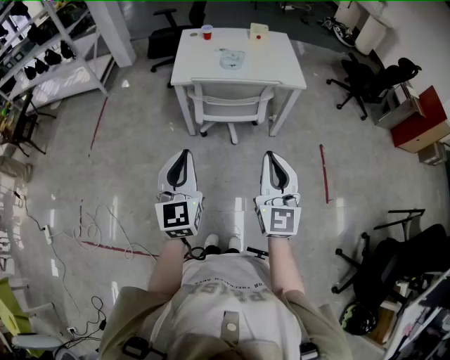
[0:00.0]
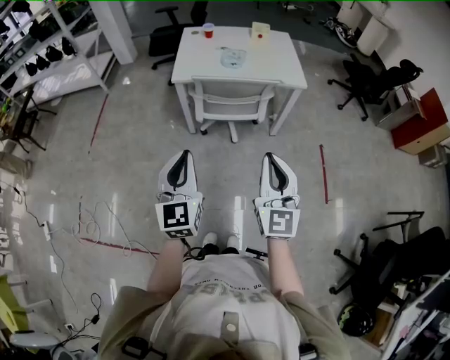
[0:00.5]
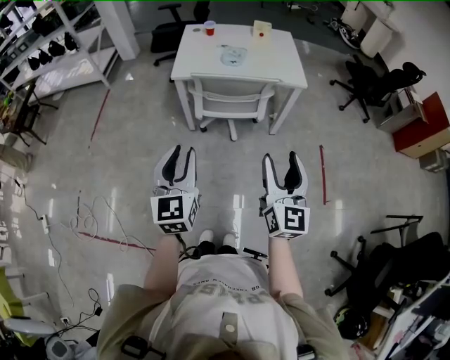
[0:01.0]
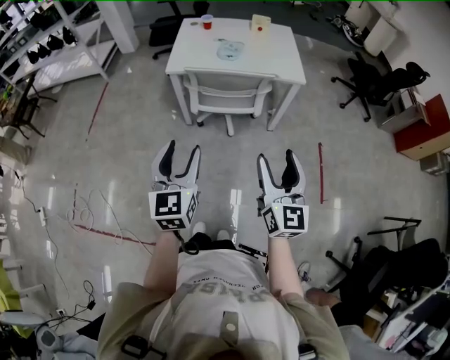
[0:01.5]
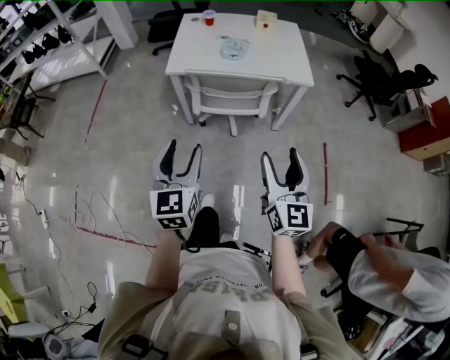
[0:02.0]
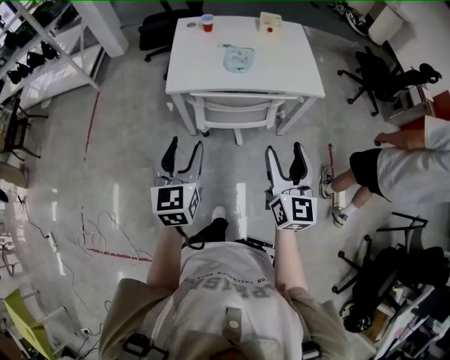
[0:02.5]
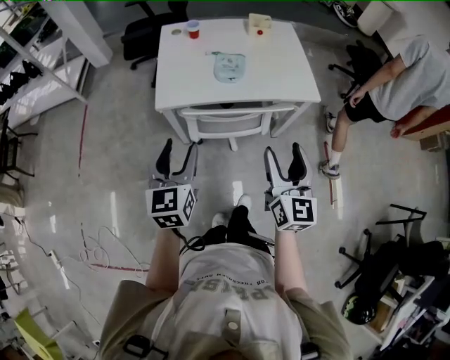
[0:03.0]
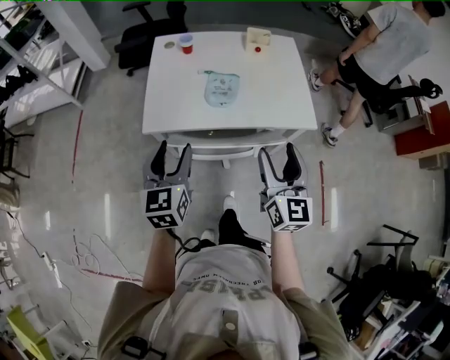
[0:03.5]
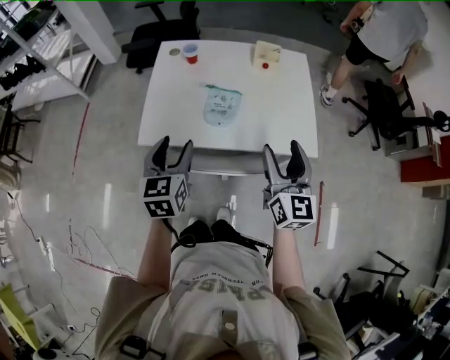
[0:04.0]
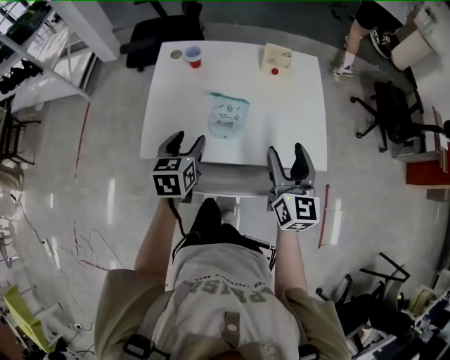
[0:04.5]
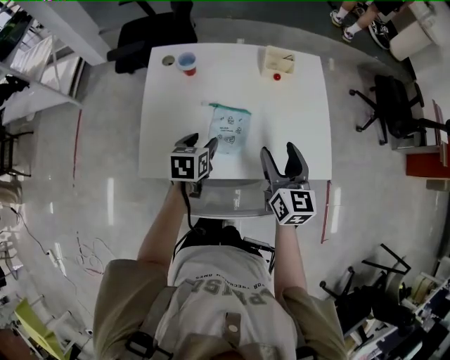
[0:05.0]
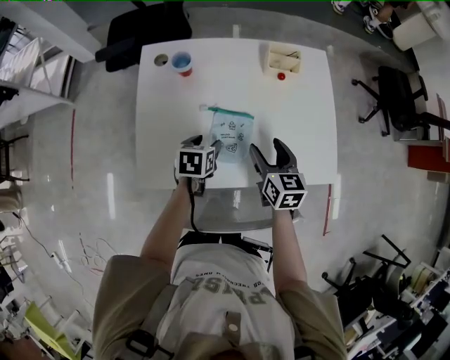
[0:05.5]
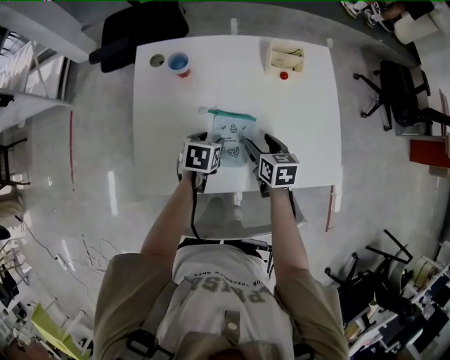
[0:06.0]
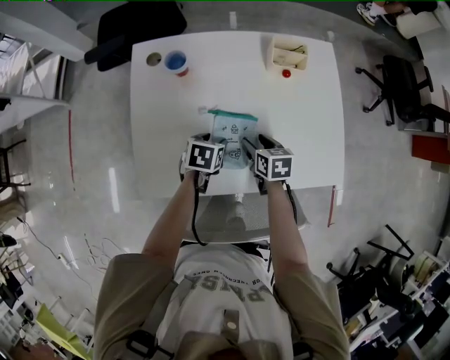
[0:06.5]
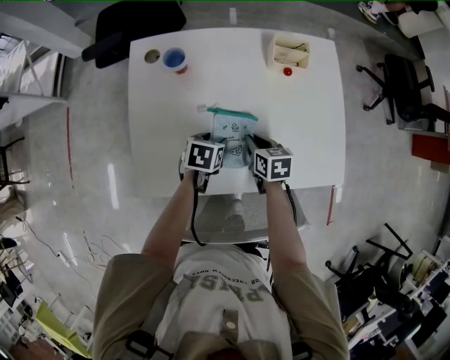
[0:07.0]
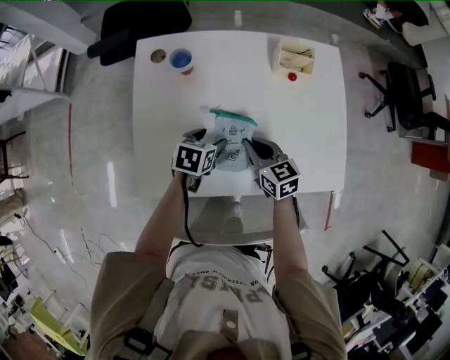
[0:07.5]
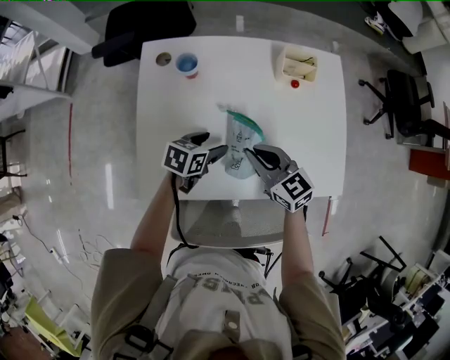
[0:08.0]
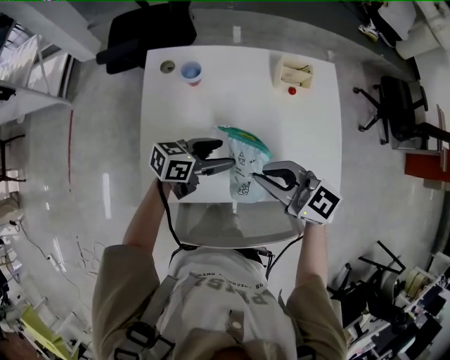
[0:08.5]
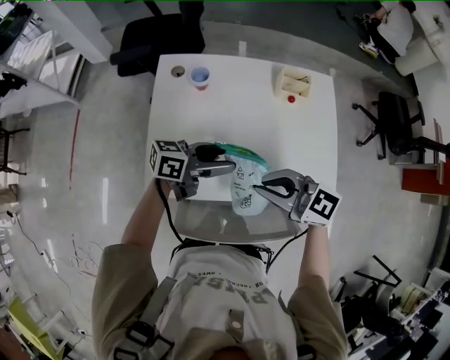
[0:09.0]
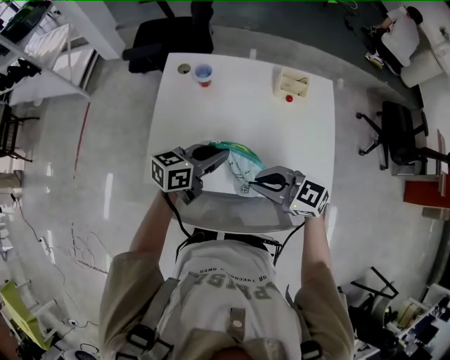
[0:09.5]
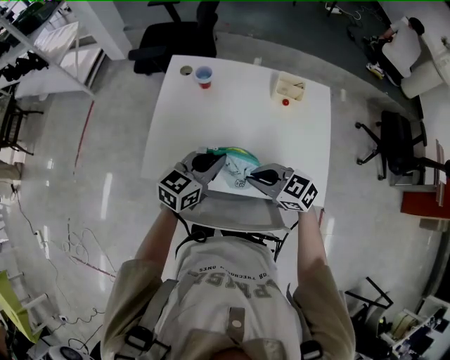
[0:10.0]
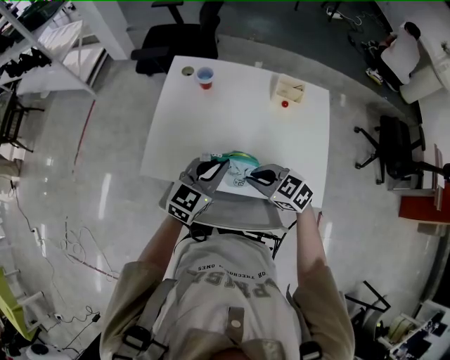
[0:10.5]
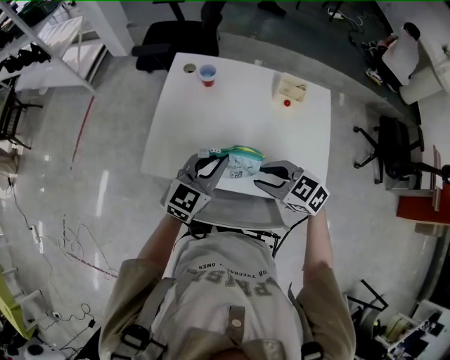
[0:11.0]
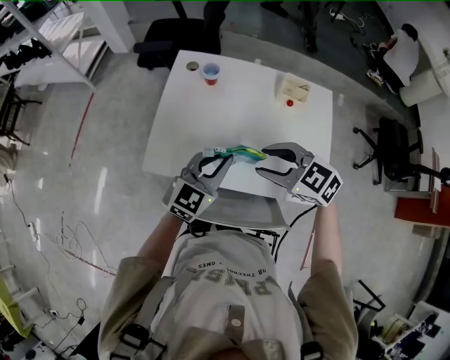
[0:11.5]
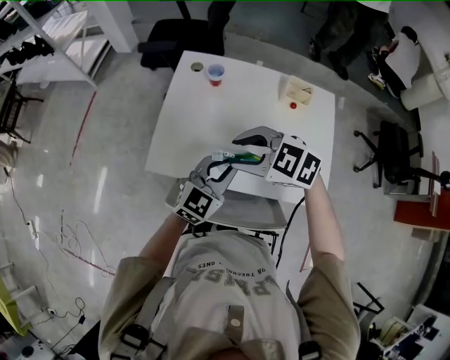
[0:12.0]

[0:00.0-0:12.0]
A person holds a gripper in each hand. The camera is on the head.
0:00.0 to 0:02.0: The right gripper travels to the right, forward and downward by roughly 10 cm, and opens its fingers. The left gripper heads forward, covering some 5 cm, and opens.
0:02.0 to 0:04.0: Both grippers are carried forward, approximately 50 cm.
0:04.0 to 0:06.0: The grippers both shift downward and forward by about 40 cm. The right gripper points its fingers about 40 degrees further downward; the left gripper tips its fingers downward by approximately 30 degrees.
0:06.0 to 0:08.0: The right gripper travels upward and to the left by some 10 cm, changes its angle by roughly 40 degrees, and closes.
0:08.0 to 0:10.0: The right gripper ends up approximately 15 cm from where it was, and rotates some 30 degrees. Meanwhile the left gripper goes about 20 cm upward, changes its angle by roughly 40 degrees, and closes.
0:10.0 to 0:12.0: The right gripper shifts approximately 15 cm upward, to the left and forward, changes its angle by approximately 20 degrees, and opens, while the left gripper swivels some 20 degrees.

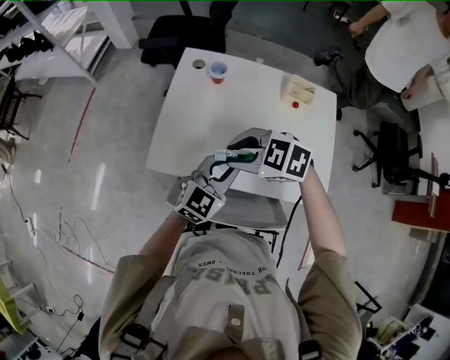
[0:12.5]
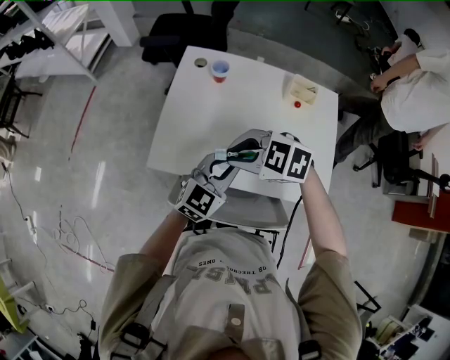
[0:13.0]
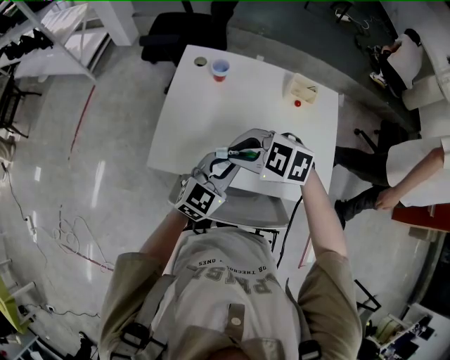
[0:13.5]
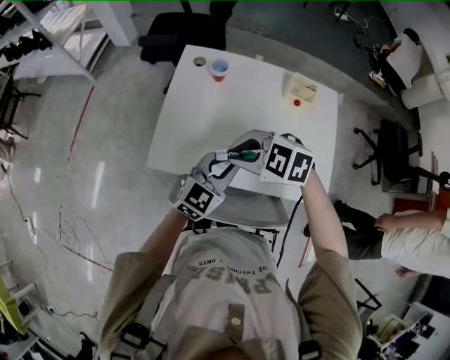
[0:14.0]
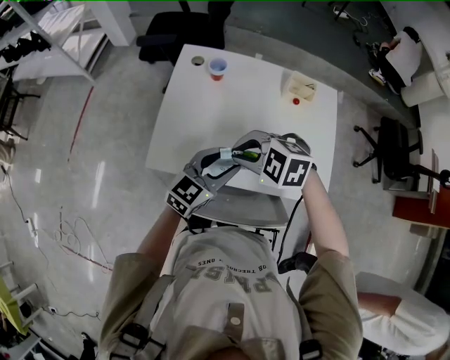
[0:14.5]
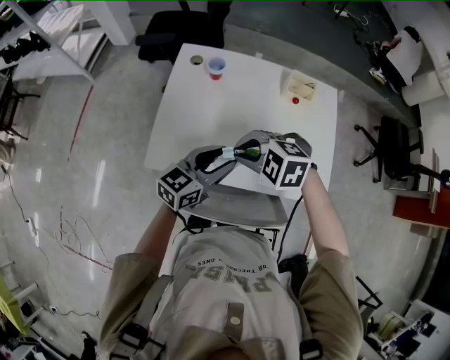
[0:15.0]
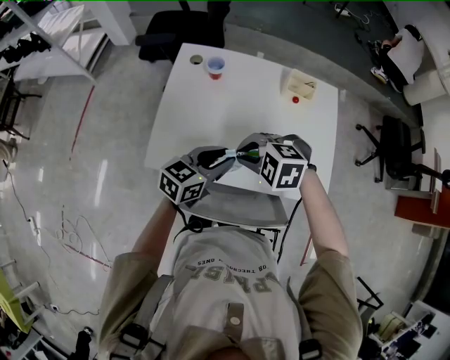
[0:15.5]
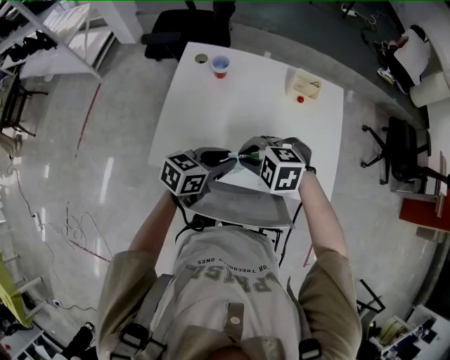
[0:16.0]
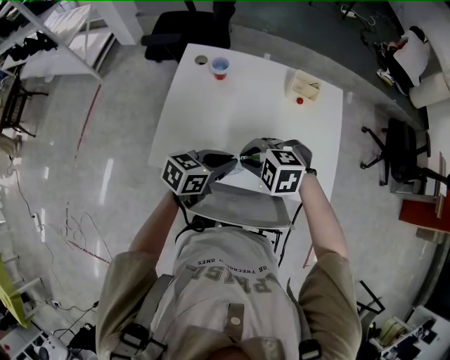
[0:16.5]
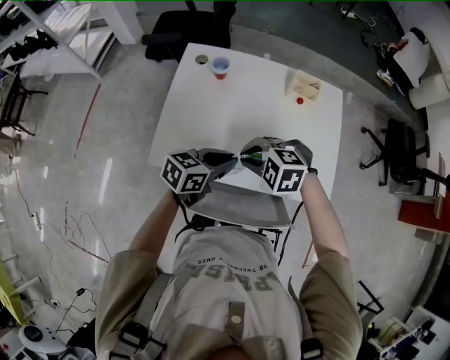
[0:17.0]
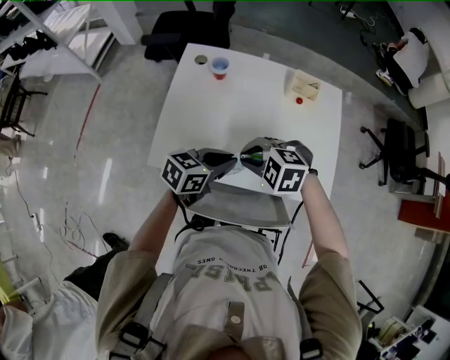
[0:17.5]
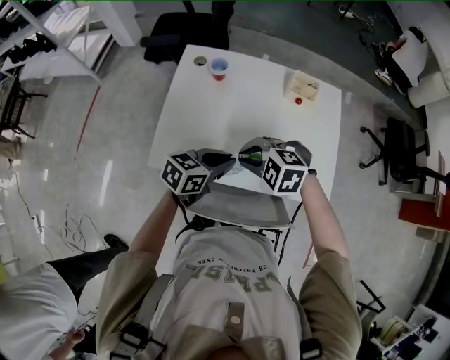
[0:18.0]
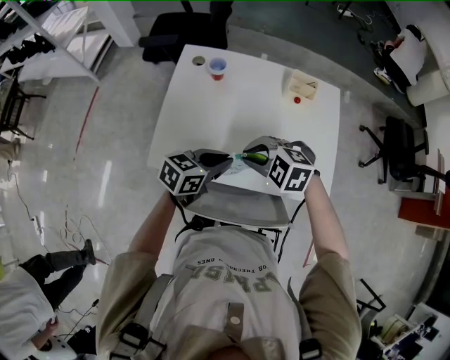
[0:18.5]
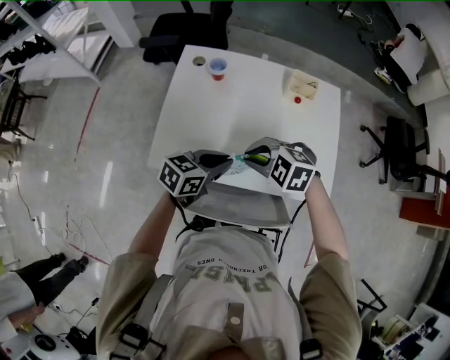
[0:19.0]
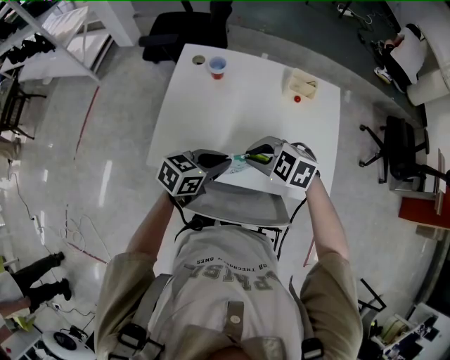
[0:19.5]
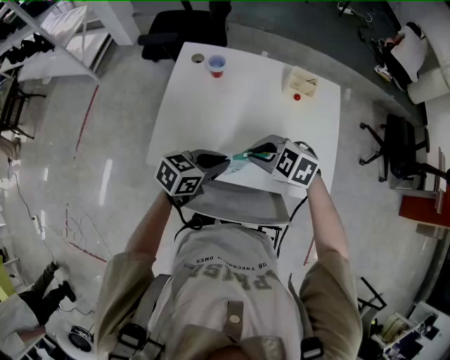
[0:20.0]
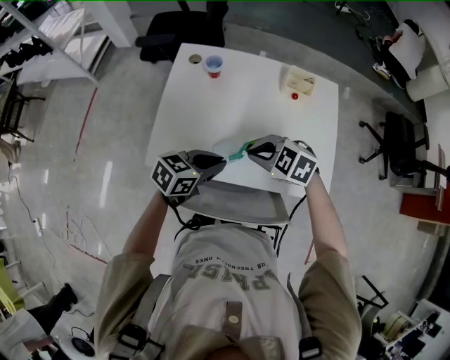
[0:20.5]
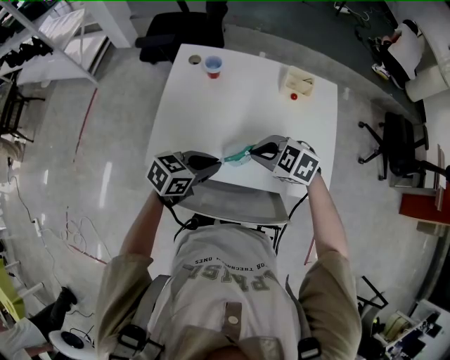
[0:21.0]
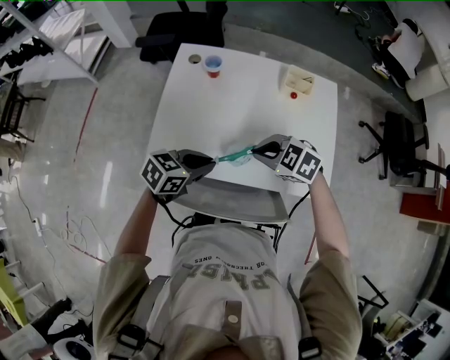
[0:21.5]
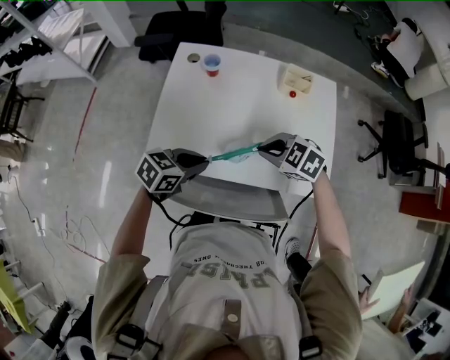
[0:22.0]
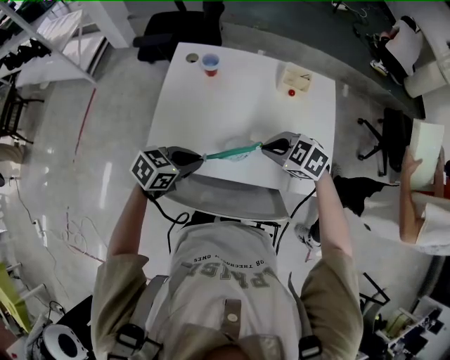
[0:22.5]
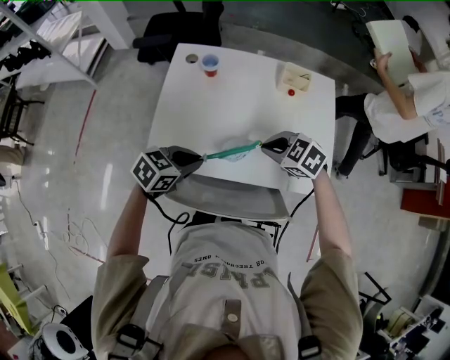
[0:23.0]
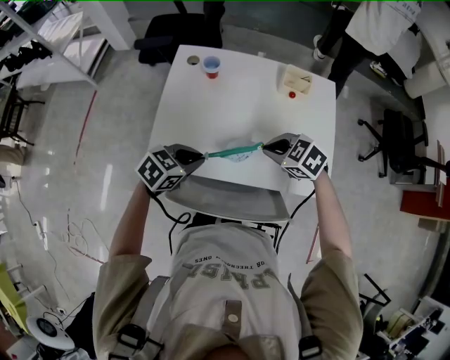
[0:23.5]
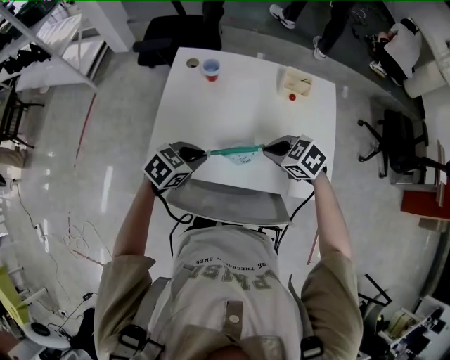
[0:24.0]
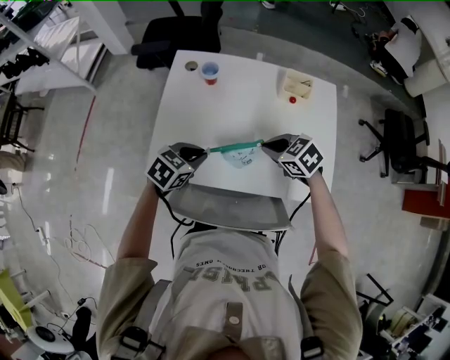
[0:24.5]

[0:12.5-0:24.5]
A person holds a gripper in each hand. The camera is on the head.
0:12.5 to 0:14.5: The left gripper opens.
0:14.5 to 0:16.5: The left gripper swivels about 30 degrees, and closes up, while the right gripper heads downward, covering about 5 cm.
0:16.5 to 0:20.5: The grippers make only small movements.
0:20.5 to 0:22.5: The right gripper ends up some 5 cm from where it was, while the left gripper ends up some 5 cm from where it was.
0:22.5 to 0:24.5: The left gripper ends up approximately 5 cm from where it was. Meanwhile the right gripper ends up some 5 cm from where it was.

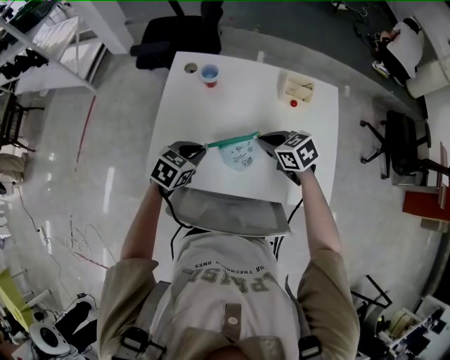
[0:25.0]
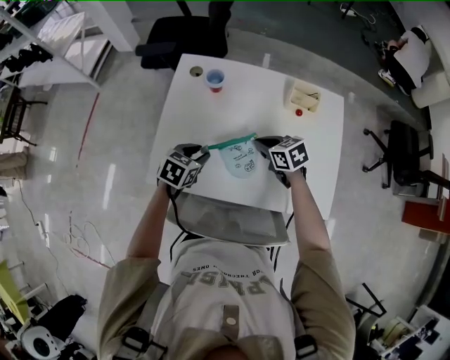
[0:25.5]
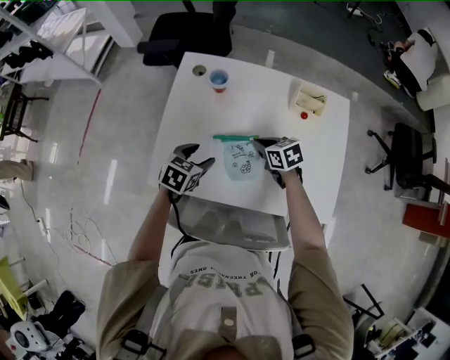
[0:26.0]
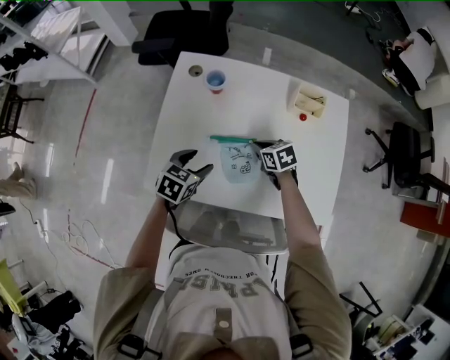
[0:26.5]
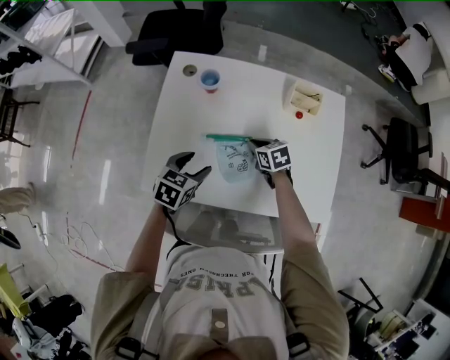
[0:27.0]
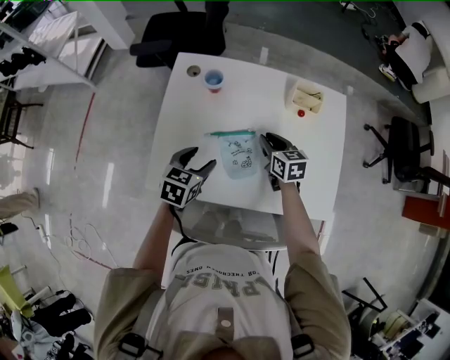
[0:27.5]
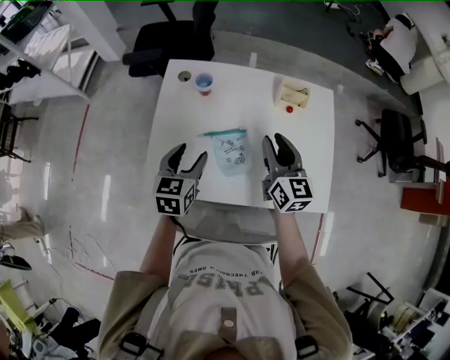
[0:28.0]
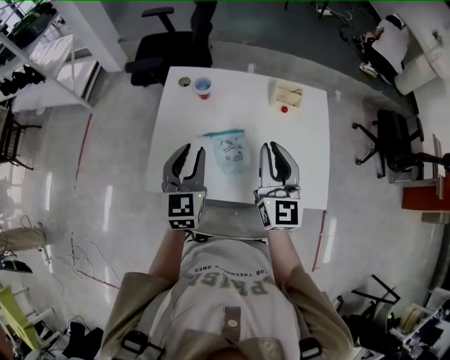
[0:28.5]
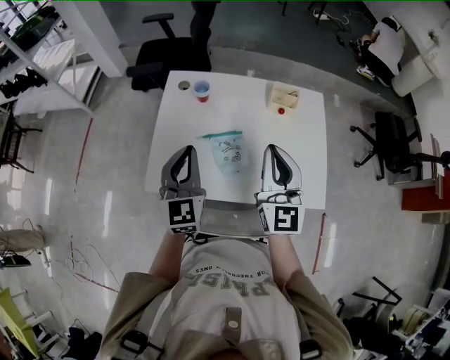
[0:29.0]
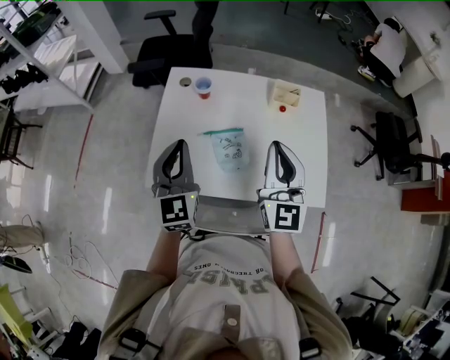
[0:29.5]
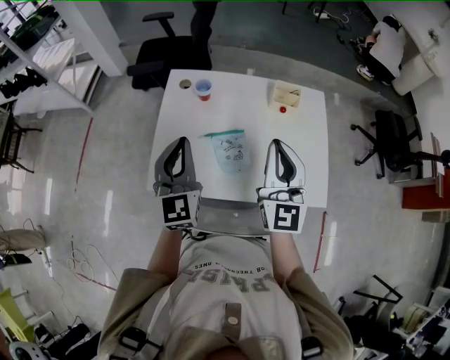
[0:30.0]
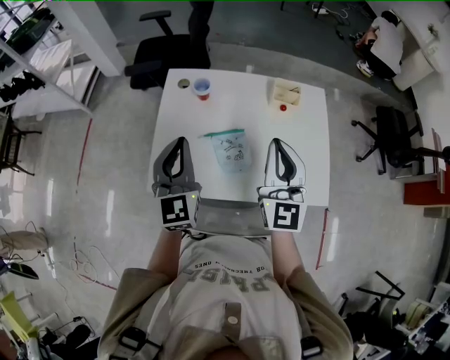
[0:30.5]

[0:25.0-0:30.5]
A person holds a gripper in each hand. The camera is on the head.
0:25.0 to 0:27.0: The left gripper opens its fingers; the right gripper moves downward and forward, about 15 cm.
0:27.0 to 0:28.5: The right gripper heads upward, covering approximately 30 cm, and tilts its fingers approximately 60 degrees upward. The left gripper shifts roughly 20 cm upward, tilts its fingers approximately 30 degrees upward, and closes its fingers.
0:28.5 to 0:30.5: The left gripper is displaced upward by approximately 5 cm, and closes its fingers.
